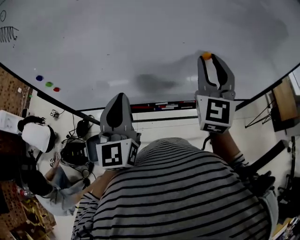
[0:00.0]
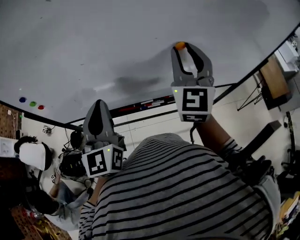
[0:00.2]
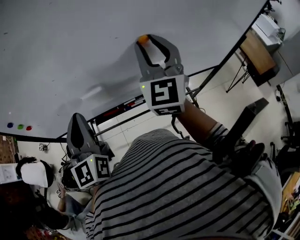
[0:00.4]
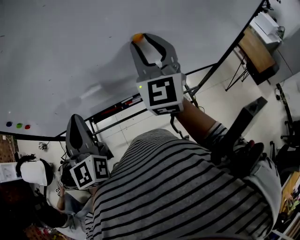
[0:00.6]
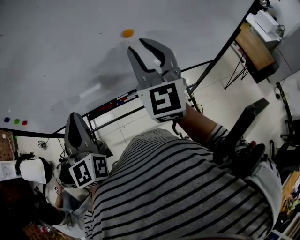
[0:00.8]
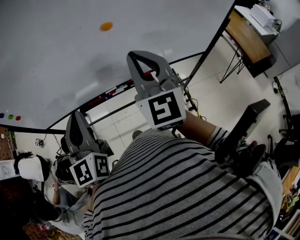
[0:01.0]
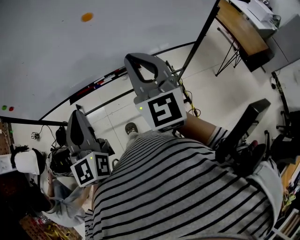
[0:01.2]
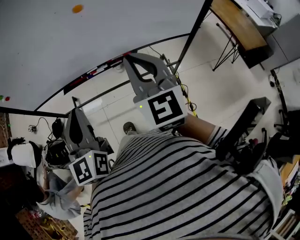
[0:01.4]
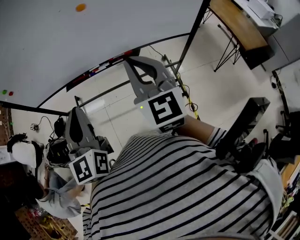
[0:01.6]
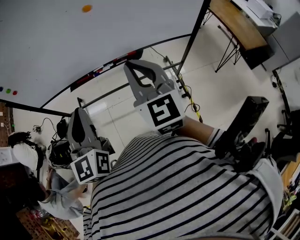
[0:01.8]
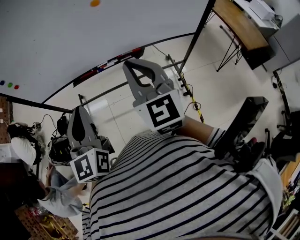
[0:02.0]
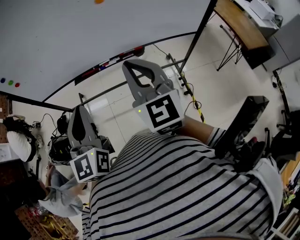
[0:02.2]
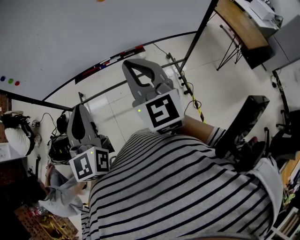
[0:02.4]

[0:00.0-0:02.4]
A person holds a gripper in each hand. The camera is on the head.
0.0 to 1.2 s: The left gripper travels backward and to the right by some 15 cm. The right gripper is displaced backward and downward by approximately 15 cm, and closes up.
1.2 to 2.4 s: The left gripper travels backward by about 10 cm. The right gripper moves backward and to the left, roughly 10 cm.

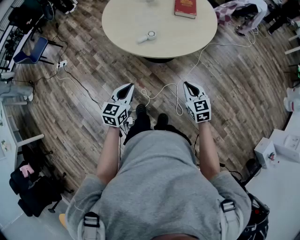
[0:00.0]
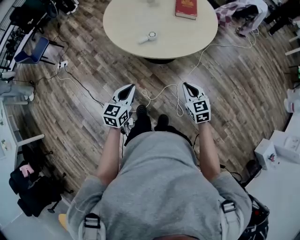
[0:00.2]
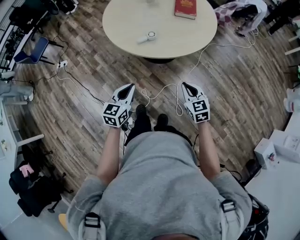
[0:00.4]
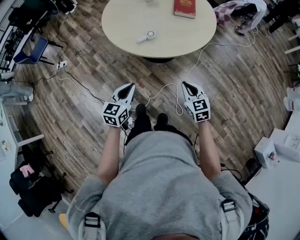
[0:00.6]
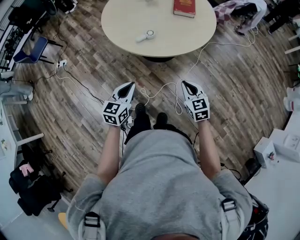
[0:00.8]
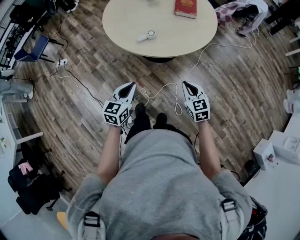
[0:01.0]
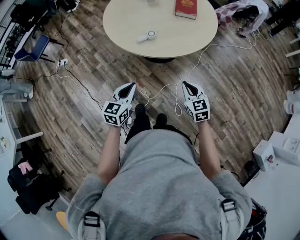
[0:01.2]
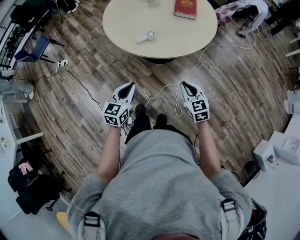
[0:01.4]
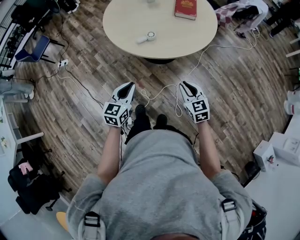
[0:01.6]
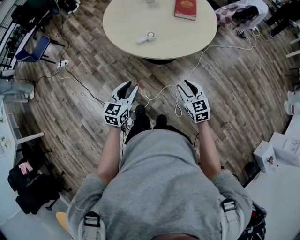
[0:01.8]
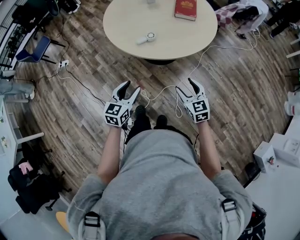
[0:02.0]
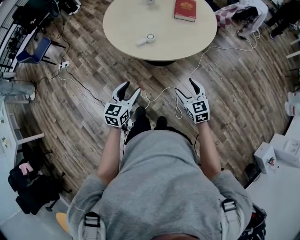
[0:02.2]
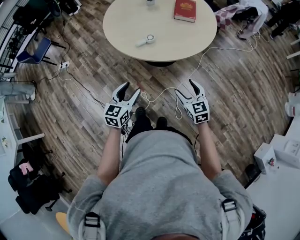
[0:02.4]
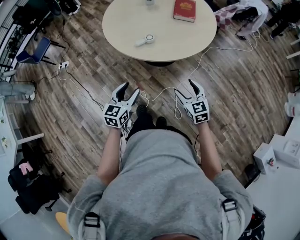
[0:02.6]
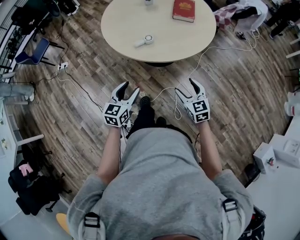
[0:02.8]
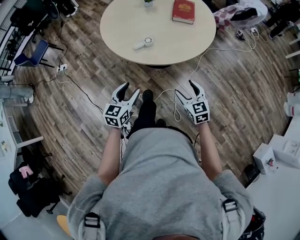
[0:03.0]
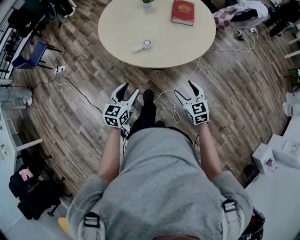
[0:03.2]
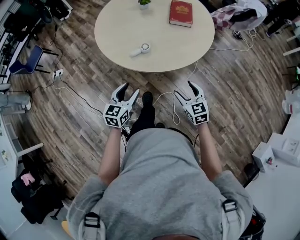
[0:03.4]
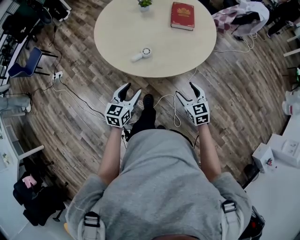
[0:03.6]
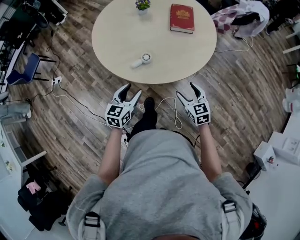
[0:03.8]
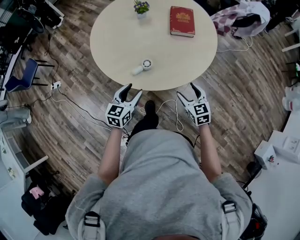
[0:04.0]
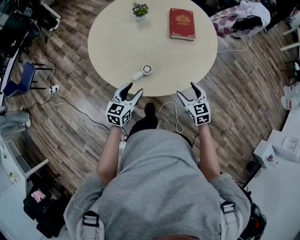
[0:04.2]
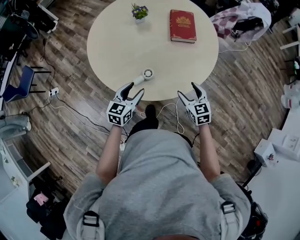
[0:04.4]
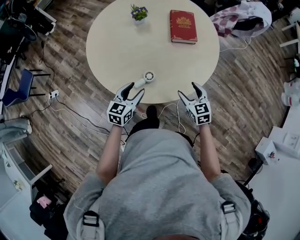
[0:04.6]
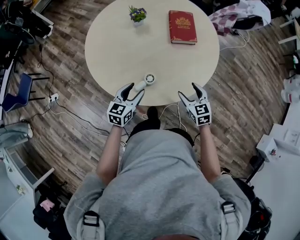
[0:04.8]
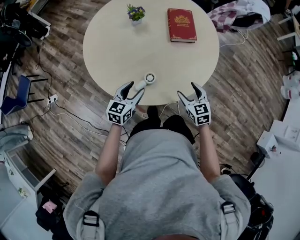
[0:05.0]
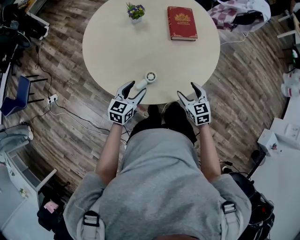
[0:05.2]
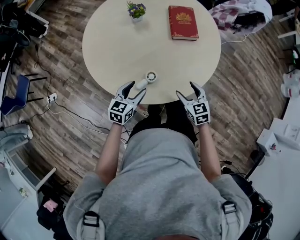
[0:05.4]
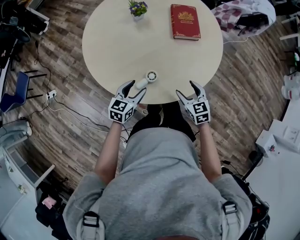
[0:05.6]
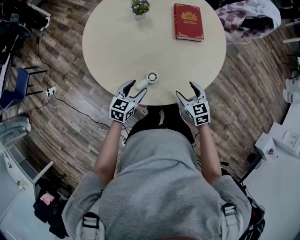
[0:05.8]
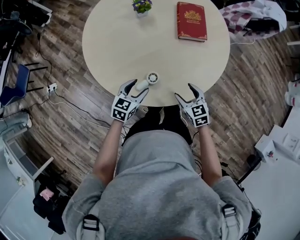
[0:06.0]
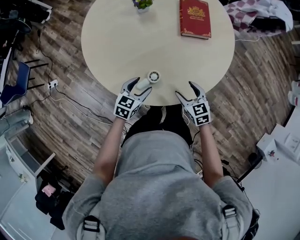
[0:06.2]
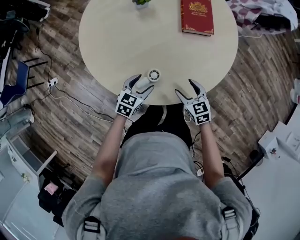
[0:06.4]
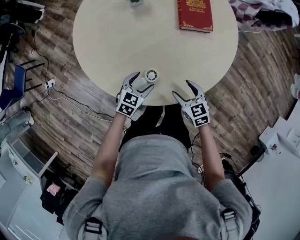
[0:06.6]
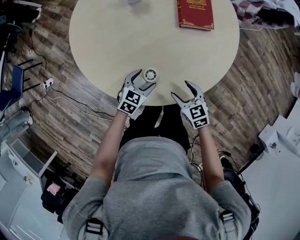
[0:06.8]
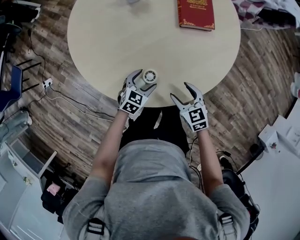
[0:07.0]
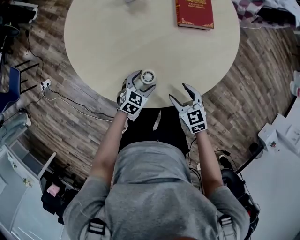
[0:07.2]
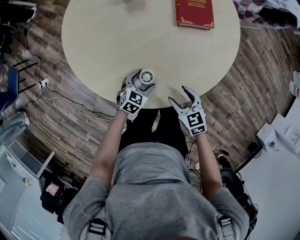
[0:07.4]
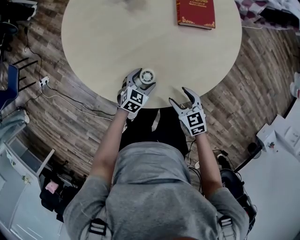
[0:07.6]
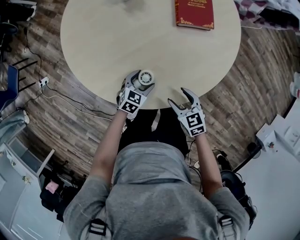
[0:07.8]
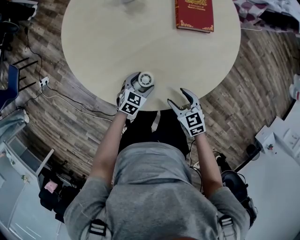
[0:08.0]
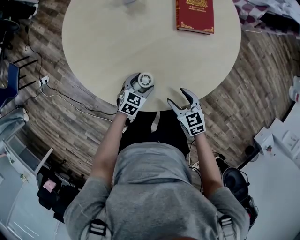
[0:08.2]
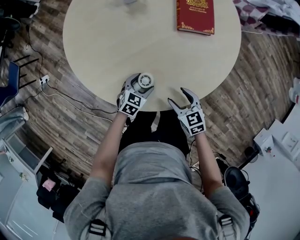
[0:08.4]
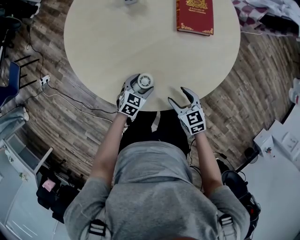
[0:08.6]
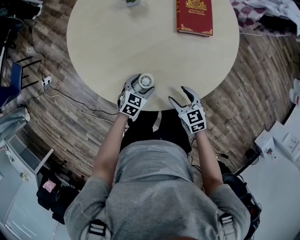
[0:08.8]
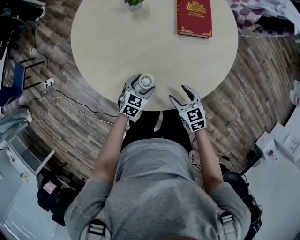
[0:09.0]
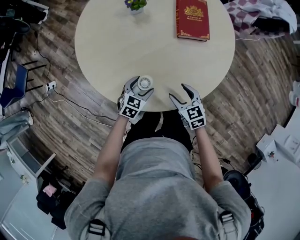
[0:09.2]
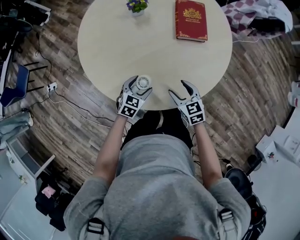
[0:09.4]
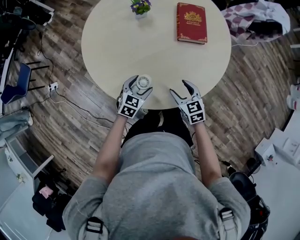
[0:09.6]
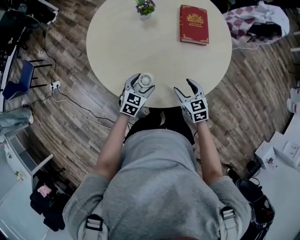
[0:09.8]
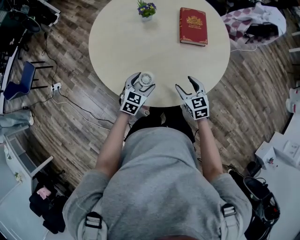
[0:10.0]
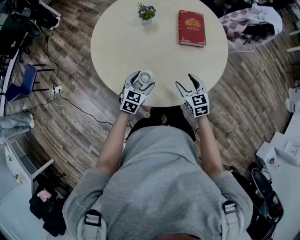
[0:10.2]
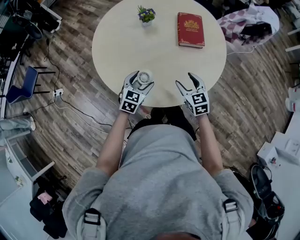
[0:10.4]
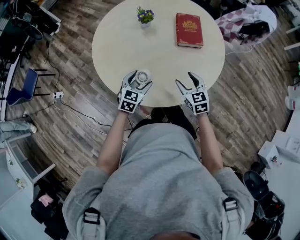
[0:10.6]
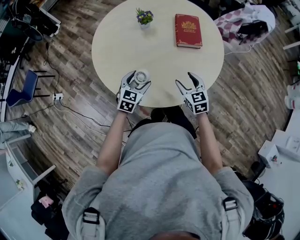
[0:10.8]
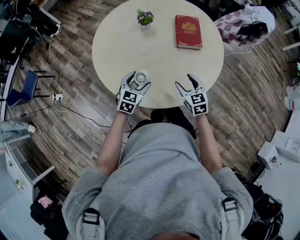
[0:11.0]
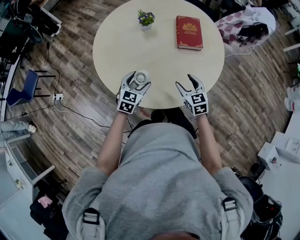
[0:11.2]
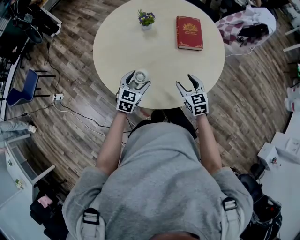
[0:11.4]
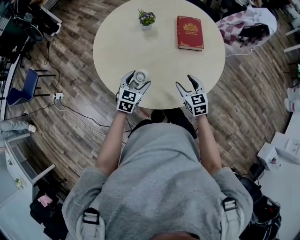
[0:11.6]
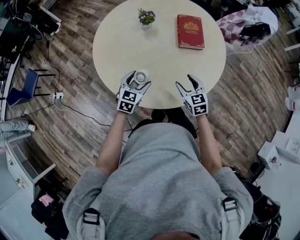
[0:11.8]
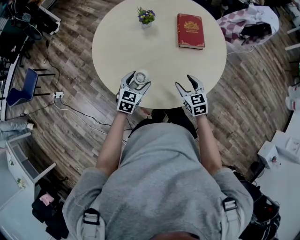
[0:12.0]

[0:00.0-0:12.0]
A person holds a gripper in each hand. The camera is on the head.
0.0 to 1.6 s: There are only small adjustments of the grippers.
1.6 to 3.0 s: The right gripper opens up; the left gripper opens.
3.0 to 4.4 s: Both grippers travel together forward, about 30 cm.
4.4 to 6.0 s: The left gripper moves downward and forward, roughly 10 cm. The right gripper moves downward and to the left, approximately 10 cm.
6.0 to 7.6 s: The left gripper heads downward, covering roughly 15 cm; the right gripper travels downward by about 10 cm.
7.6 to 9.0 s: The grippers move only a little.
9.0 to 10.4 s: Both grippers travel together upward, about 15 cm.
10.4 to 12.0 s: The grippers move only a little.

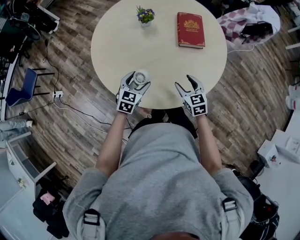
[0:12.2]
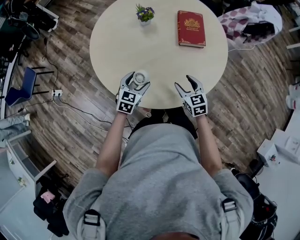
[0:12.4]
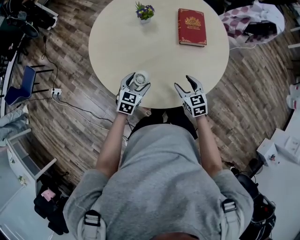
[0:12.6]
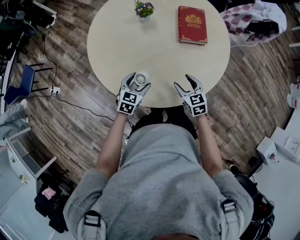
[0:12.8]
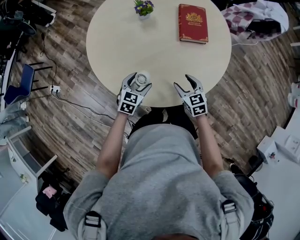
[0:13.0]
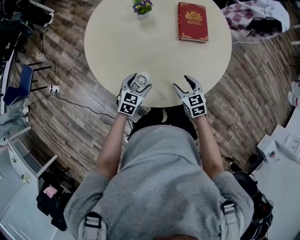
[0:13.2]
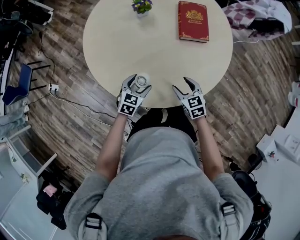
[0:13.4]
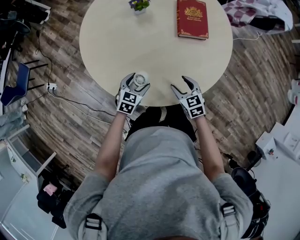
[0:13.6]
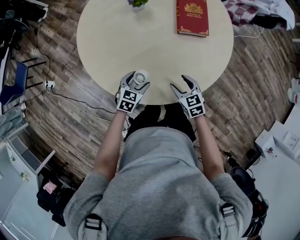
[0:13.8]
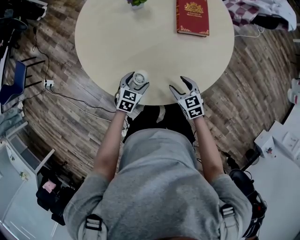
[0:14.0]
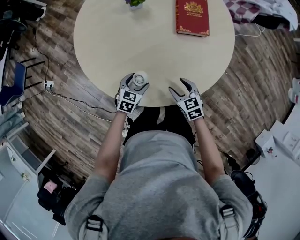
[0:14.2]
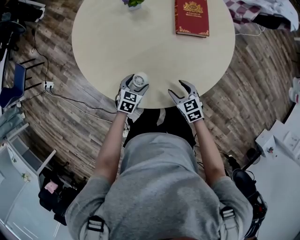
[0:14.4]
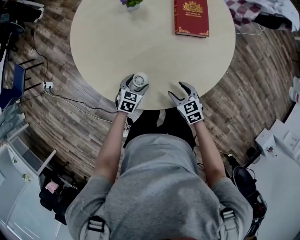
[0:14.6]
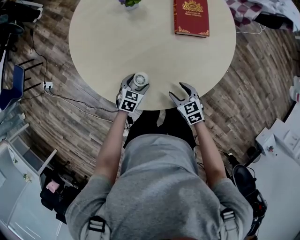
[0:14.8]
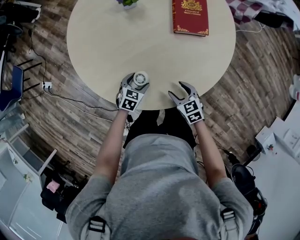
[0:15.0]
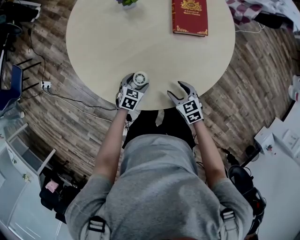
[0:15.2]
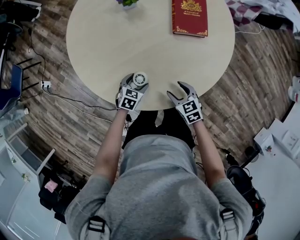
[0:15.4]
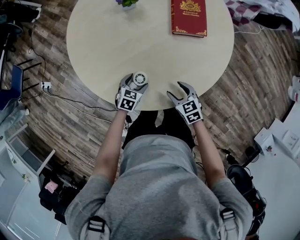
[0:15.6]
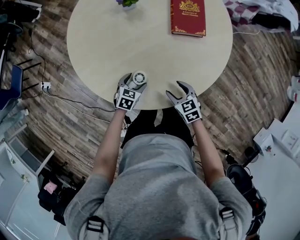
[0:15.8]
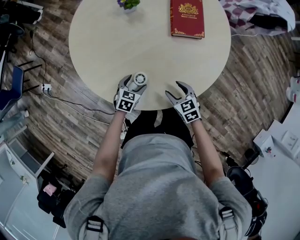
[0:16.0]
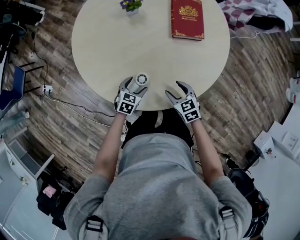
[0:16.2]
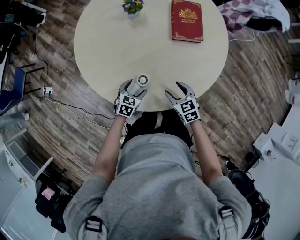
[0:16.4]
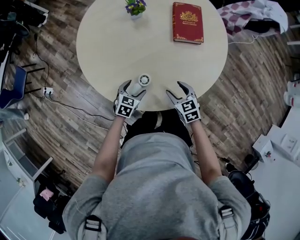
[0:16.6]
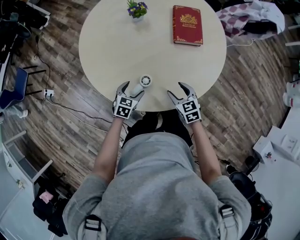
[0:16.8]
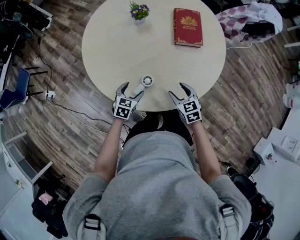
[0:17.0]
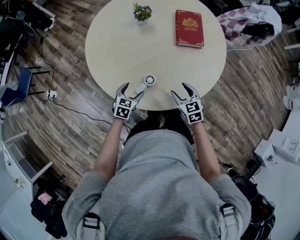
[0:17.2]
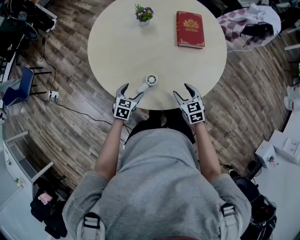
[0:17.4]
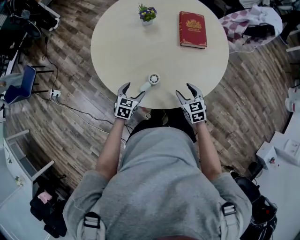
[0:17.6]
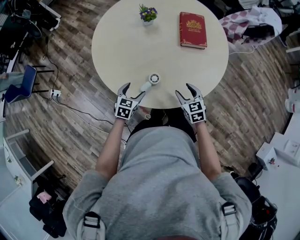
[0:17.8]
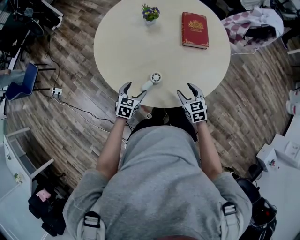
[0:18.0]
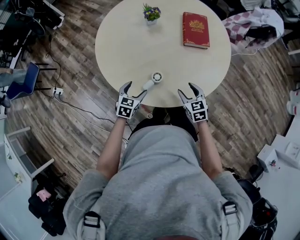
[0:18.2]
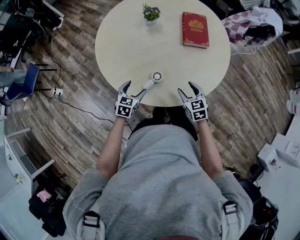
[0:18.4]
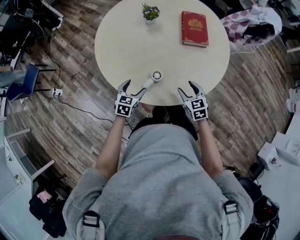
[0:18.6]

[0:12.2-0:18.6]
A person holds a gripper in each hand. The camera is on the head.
12.2 to 13.8 s: Both grippers move downward, about 10 cm.
13.8 to 15.4 s: The left gripper shifts about 10 cm downward.
15.4 to 17.0 s: The left gripper moves upward and to the left, about 10 cm. The right gripper goes roughly 10 cm upward.
17.0 to 18.6 s: The left gripper travels upward by approximately 5 cm.

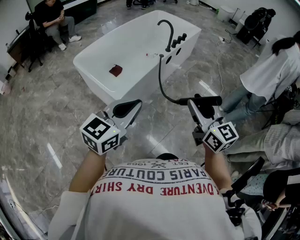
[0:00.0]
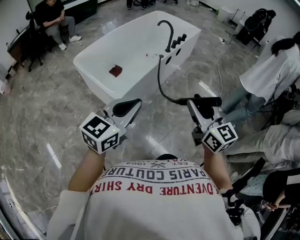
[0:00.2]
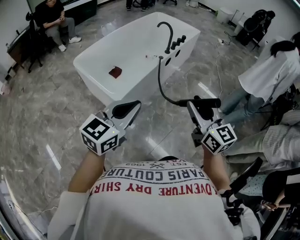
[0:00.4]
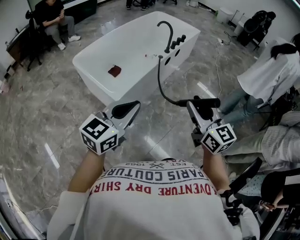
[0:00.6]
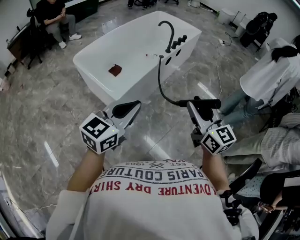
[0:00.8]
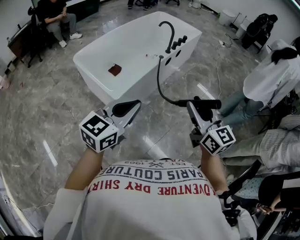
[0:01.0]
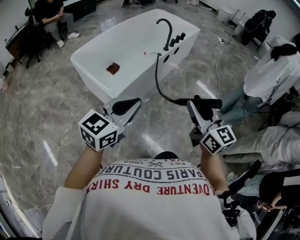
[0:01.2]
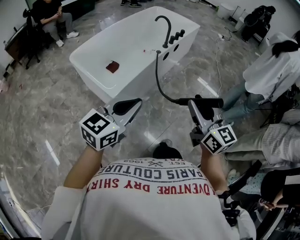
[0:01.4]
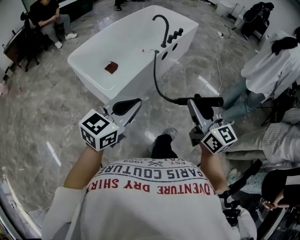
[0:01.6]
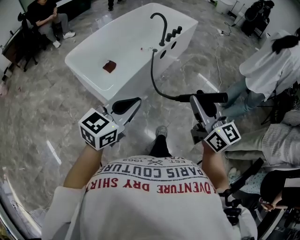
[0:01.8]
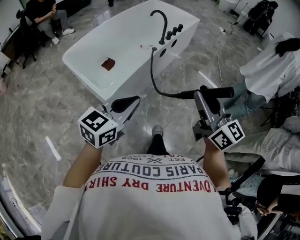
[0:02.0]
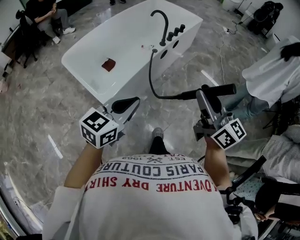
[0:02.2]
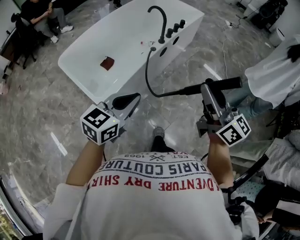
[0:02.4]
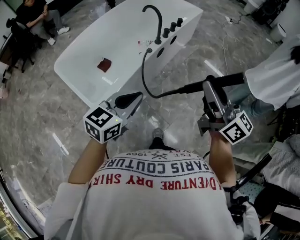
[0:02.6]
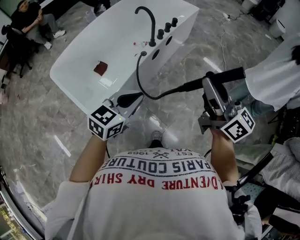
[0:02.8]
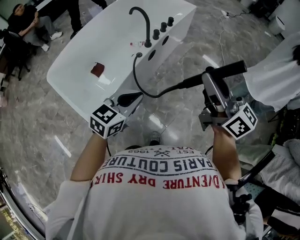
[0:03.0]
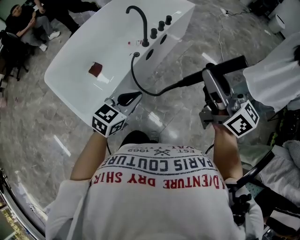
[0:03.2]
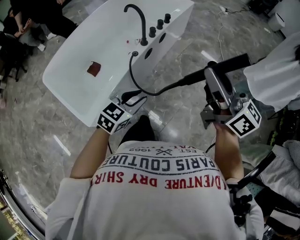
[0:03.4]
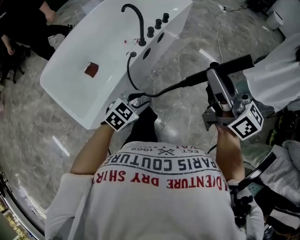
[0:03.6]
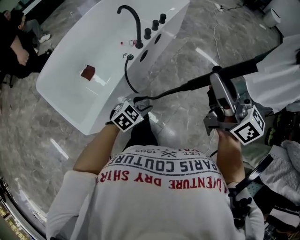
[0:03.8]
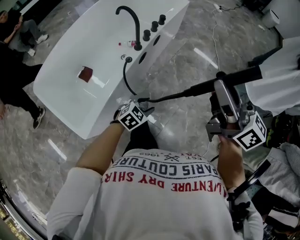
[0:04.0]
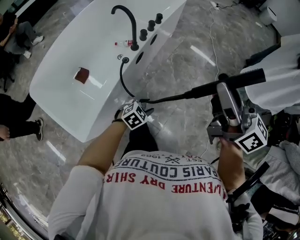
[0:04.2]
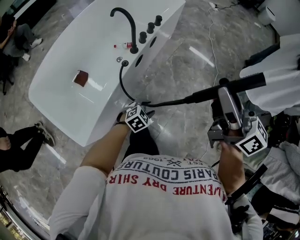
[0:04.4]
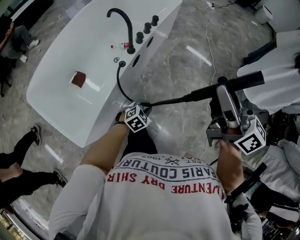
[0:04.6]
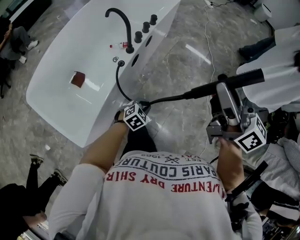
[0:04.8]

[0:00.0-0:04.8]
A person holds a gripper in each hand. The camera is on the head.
0.0 to 1.6 s: Both grippers move downward, about 20 cm.
1.6 to 3.2 s: The left gripper travels downward, forward and to the right by approximately 50 cm. The right gripper is displaced forward, downward and to the right by some 40 cm.
3.2 to 4.8 s: The left gripper is displaced downward by some 25 cm, turns by about 30 degrees, and opens and closes again.
